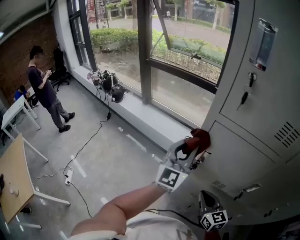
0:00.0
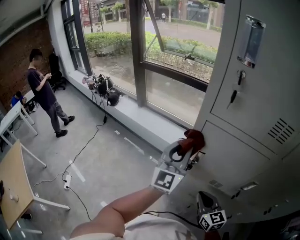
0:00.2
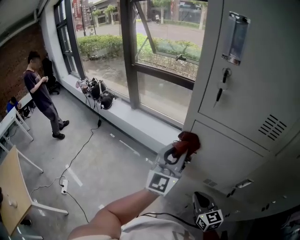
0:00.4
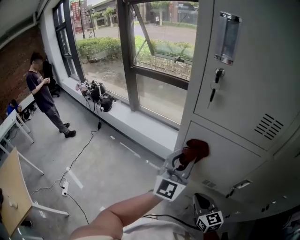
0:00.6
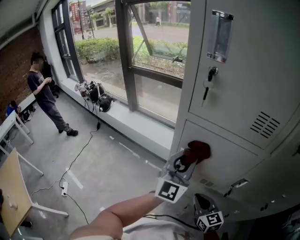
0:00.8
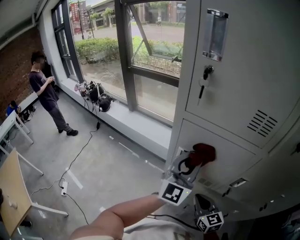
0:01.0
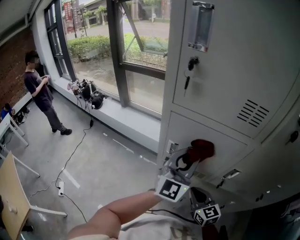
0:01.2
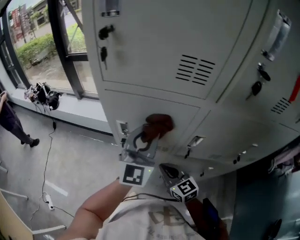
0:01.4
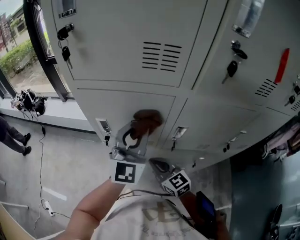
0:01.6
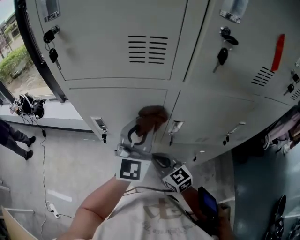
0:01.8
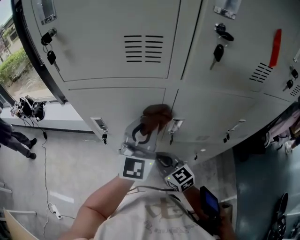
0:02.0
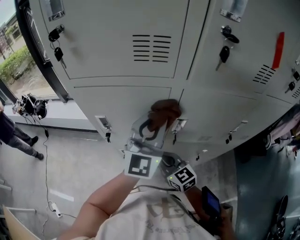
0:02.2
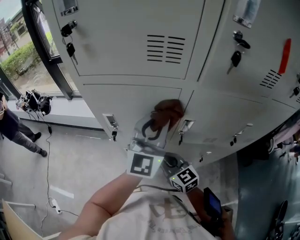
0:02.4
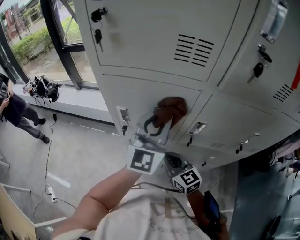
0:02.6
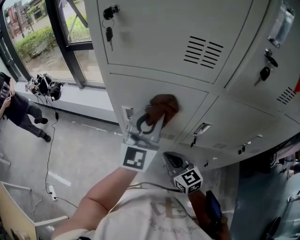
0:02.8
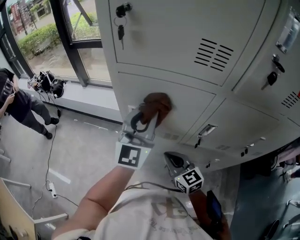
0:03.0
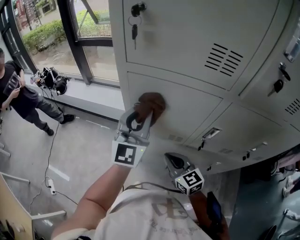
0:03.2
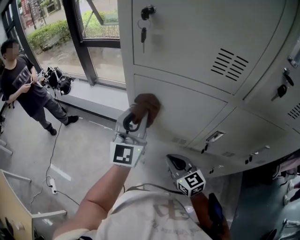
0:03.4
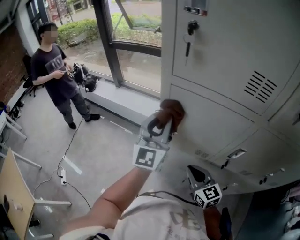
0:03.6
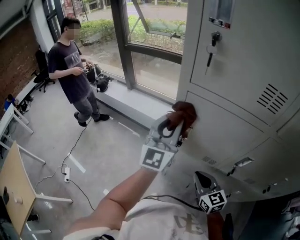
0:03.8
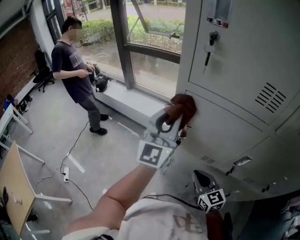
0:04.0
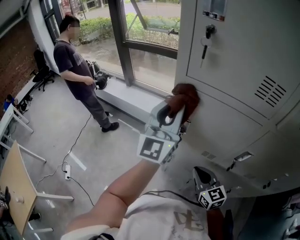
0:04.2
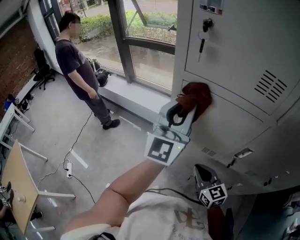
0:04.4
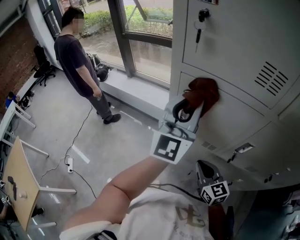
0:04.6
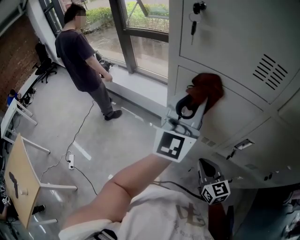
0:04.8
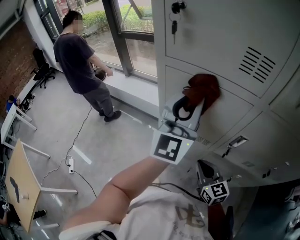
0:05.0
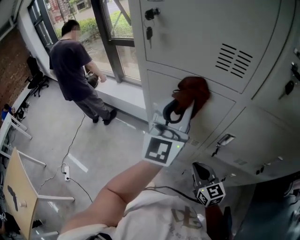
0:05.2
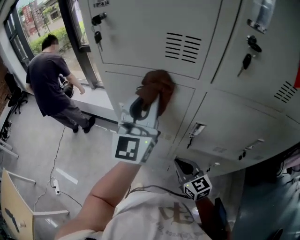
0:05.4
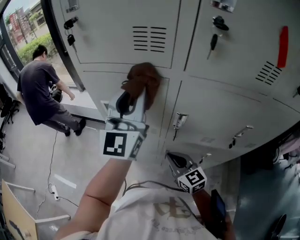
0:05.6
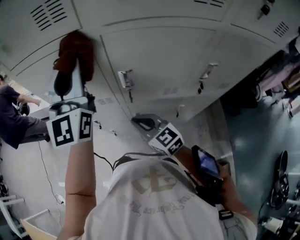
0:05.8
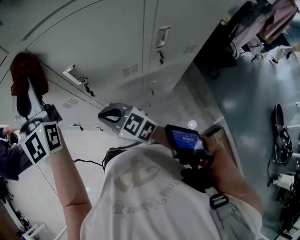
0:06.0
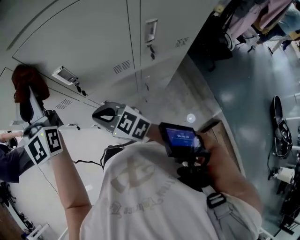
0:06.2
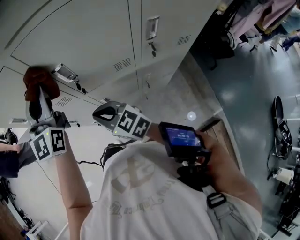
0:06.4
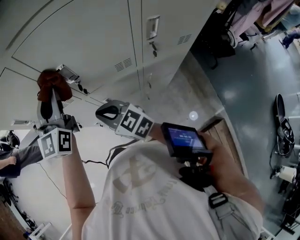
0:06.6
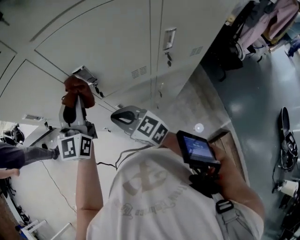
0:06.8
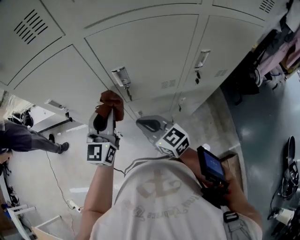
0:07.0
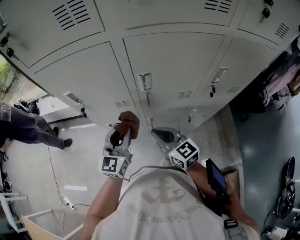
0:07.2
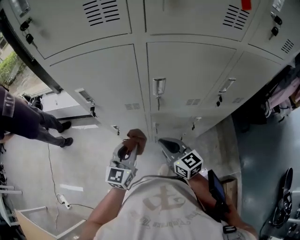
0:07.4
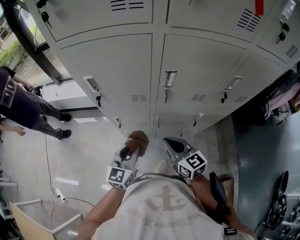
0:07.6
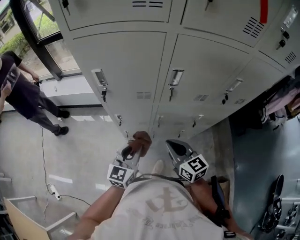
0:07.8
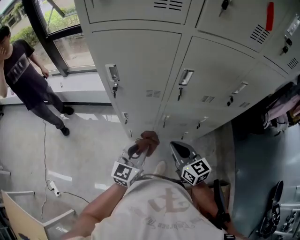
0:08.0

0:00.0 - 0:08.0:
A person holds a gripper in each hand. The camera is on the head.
0:00.0 - 0:01.6: The left gripper goes some 20 cm to the right; the right gripper heads to the right, covering about 10 cm.
0:01.6 - 0:03.2: The left gripper goes some 10 cm to the left.
0:03.2 - 0:04.8: The left gripper is displaced upward by approximately 10 cm. The right gripper shifts some 5 cm to the right.
0:04.8 - 0:06.4: The left gripper moves to the right and downward, approximately 15 cm, and turns by roughly 20 degrees; the right gripper goes about 5 cm to the right.
0:06.4 - 0:08.0: The left gripper is displaced downward, backward and to the left by approximately 30 cm, and swivels about 30 degrees. The right gripper shifts about 10 cm backward.

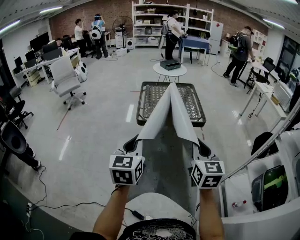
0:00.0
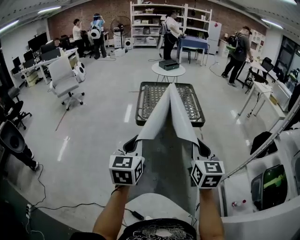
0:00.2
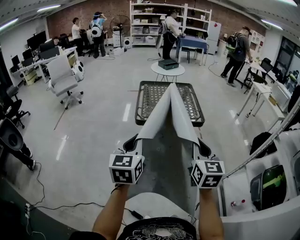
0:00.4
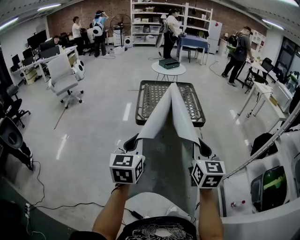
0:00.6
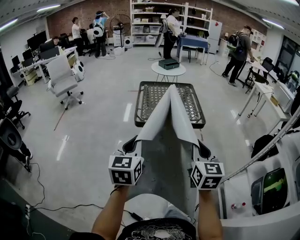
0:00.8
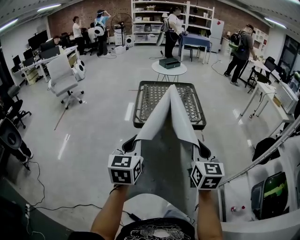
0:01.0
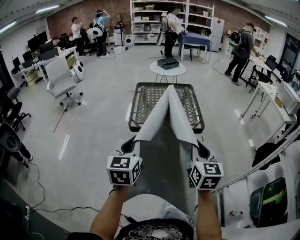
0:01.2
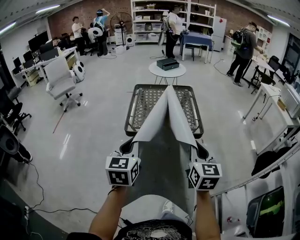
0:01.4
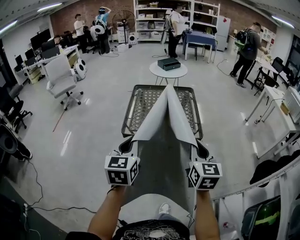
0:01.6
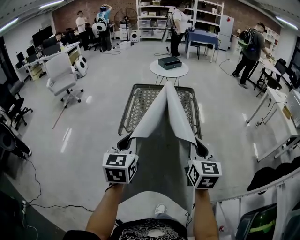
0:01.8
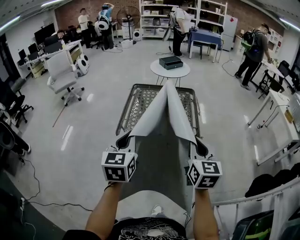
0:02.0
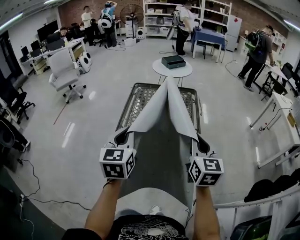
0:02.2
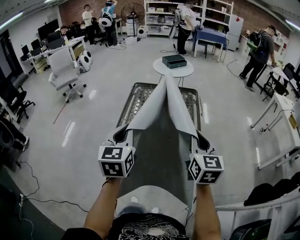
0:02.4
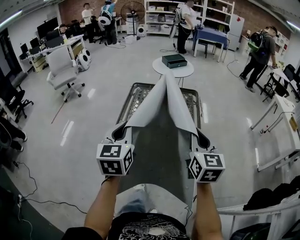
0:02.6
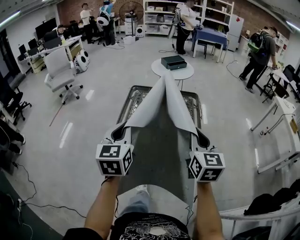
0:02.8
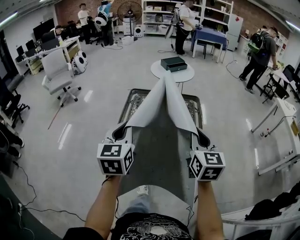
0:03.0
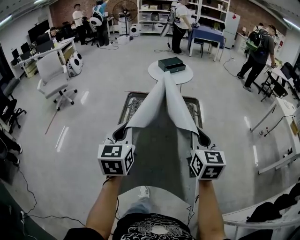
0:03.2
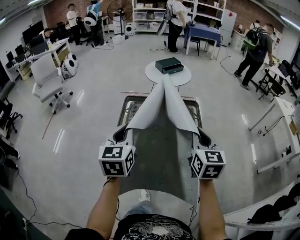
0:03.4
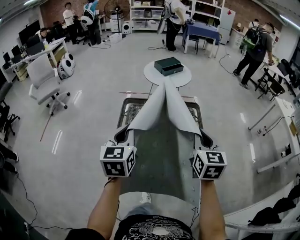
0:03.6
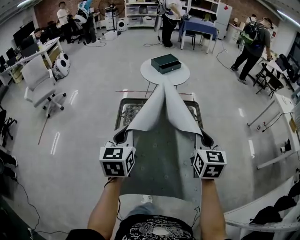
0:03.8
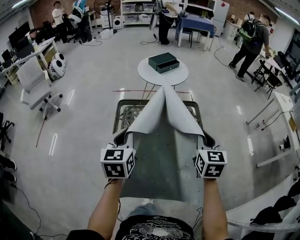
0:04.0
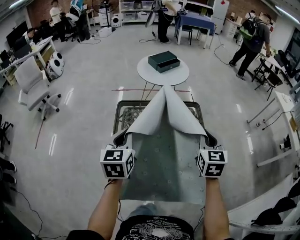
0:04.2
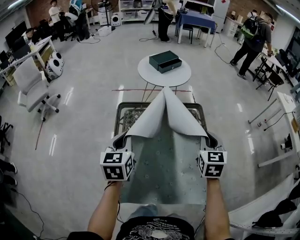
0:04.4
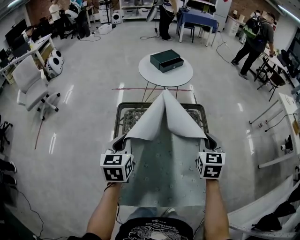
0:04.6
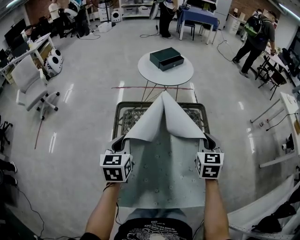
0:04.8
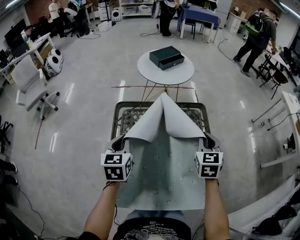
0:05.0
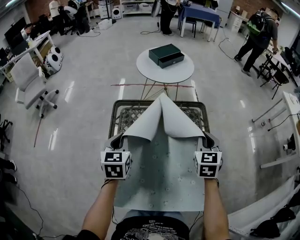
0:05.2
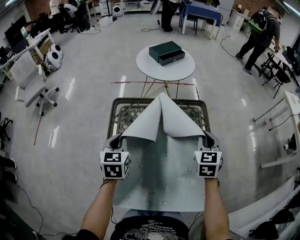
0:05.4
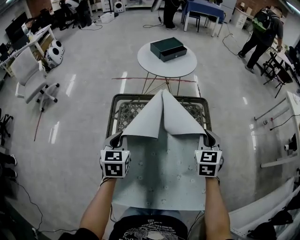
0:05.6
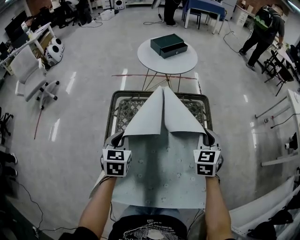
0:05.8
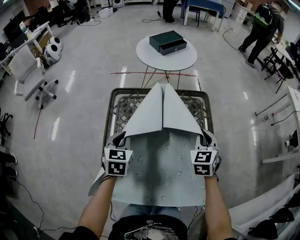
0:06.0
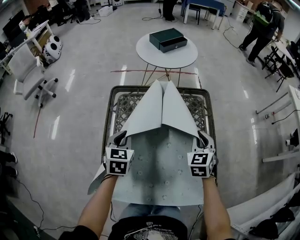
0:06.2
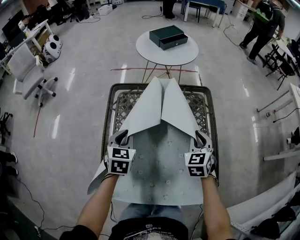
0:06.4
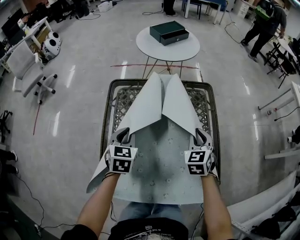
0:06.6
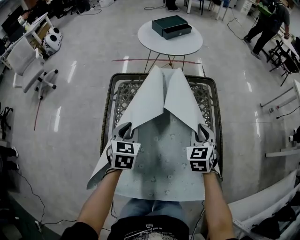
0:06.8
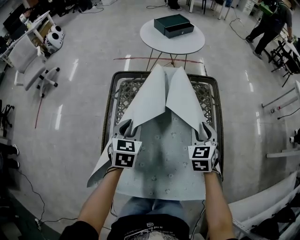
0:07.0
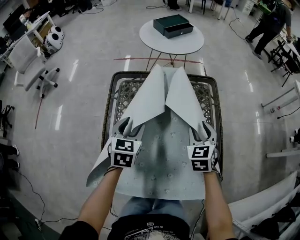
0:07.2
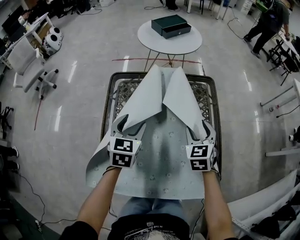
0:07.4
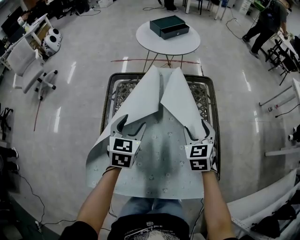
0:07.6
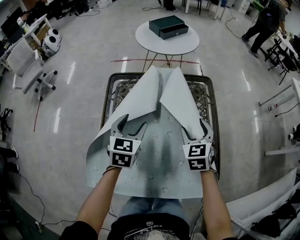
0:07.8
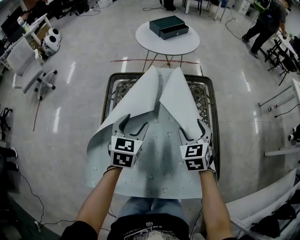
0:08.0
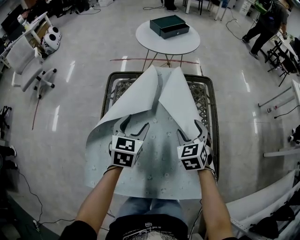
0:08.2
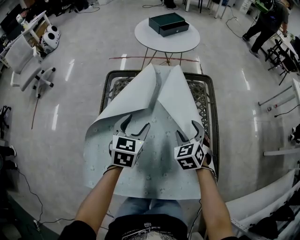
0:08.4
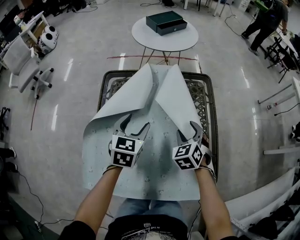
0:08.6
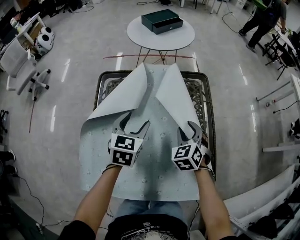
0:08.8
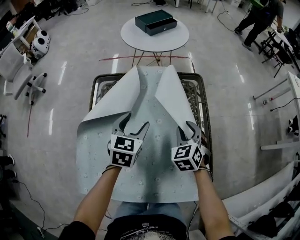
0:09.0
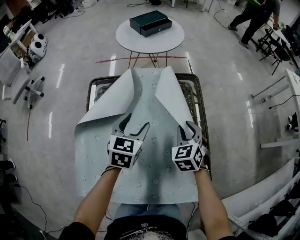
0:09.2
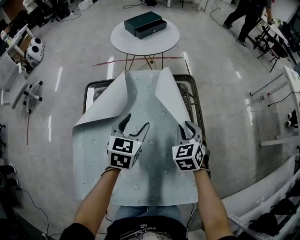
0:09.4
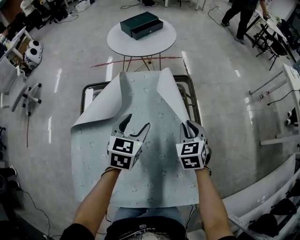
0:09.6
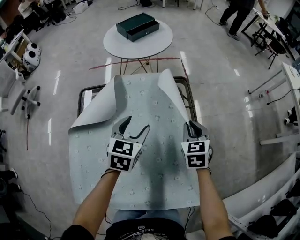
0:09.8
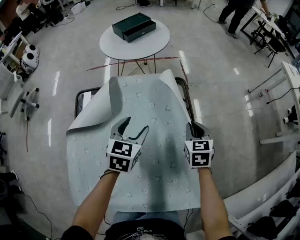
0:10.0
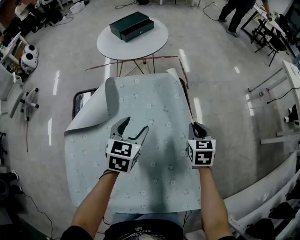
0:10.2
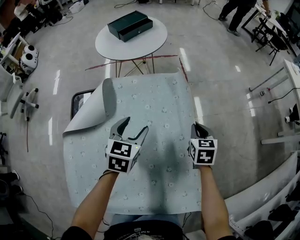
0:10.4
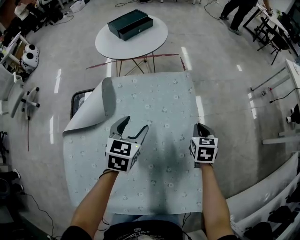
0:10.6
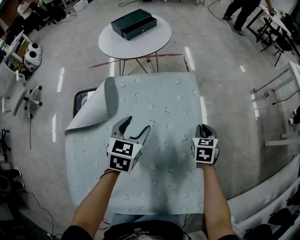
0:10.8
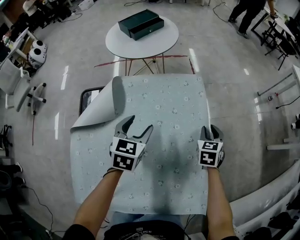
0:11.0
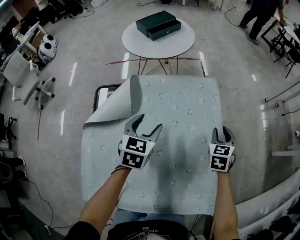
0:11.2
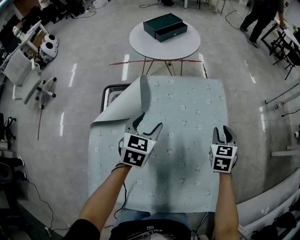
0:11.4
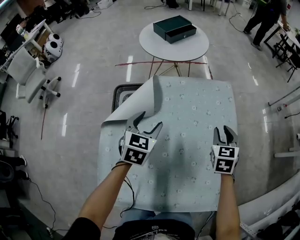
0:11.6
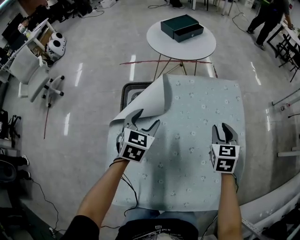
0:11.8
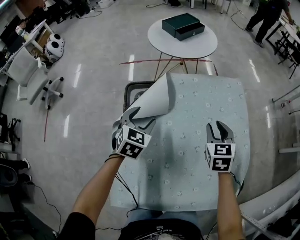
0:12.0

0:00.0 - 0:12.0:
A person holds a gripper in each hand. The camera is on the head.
0:00.0 - 0:01.6: The grippers both shift forward and to the right by some 25 cm.
0:01.6 - 0:03.0: The grippers both shift forward by some 25 cm.
0:03.0 - 0:04.4: Both grippers move forward, some 25 cm. The right gripper changes its angle by some 20 degrees.
0:04.4 - 0:06.0: The left gripper goes roughly 15 cm downward, while the right gripper is displaced downward and forward by approximately 15 cm.
0:06.0 - 0:07.6: The right gripper shifts some 5 cm downward, and opens its fingers; the left gripper changes place by roughly 5 cm, and opens up.
0:07.6 - 0:09.0: The left gripper heads to the right, covering roughly 5 cm. Meanwhile the right gripper moves roughly 5 cm, and closes.
0:09.0 - 0:10.4: The grippers both shift to the right and forward by roughly 15 cm. The right gripper changes its angle by about 40 degrees, and closes its fingers.
0:10.4 - 0:12.0: The two grippers go some 25 cm to the left.

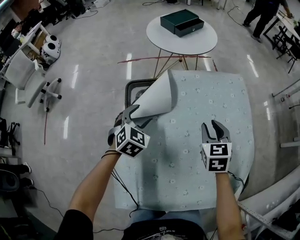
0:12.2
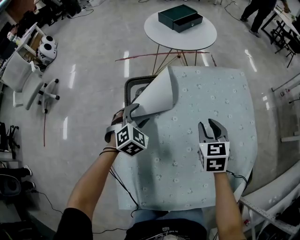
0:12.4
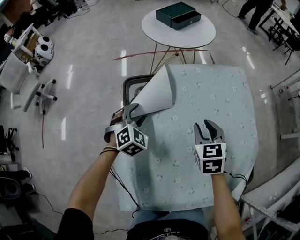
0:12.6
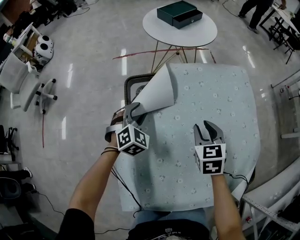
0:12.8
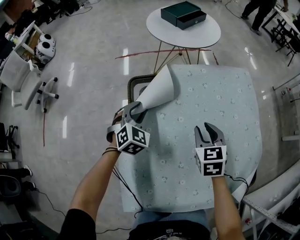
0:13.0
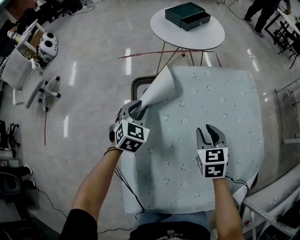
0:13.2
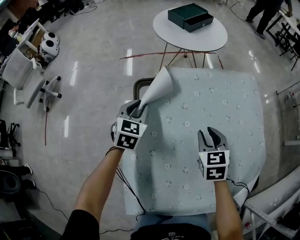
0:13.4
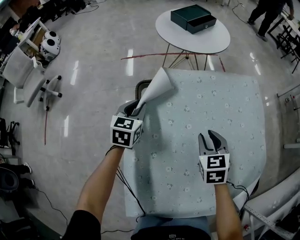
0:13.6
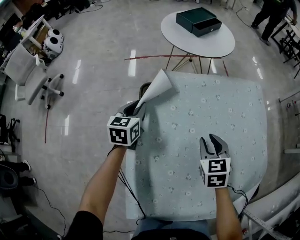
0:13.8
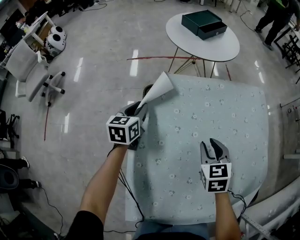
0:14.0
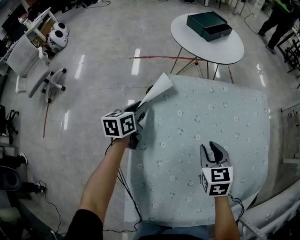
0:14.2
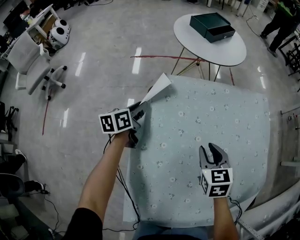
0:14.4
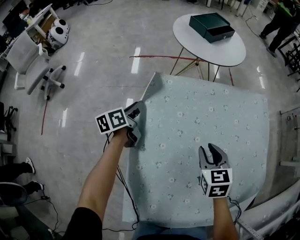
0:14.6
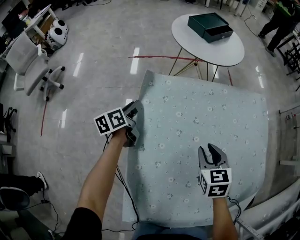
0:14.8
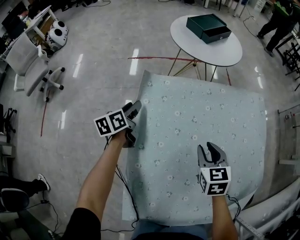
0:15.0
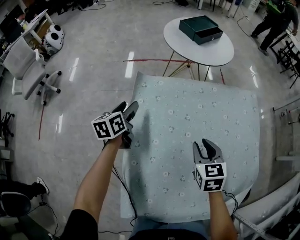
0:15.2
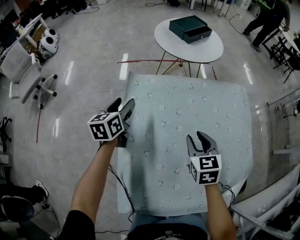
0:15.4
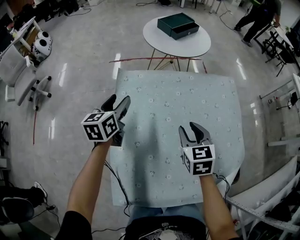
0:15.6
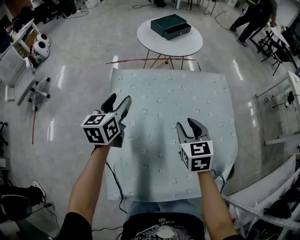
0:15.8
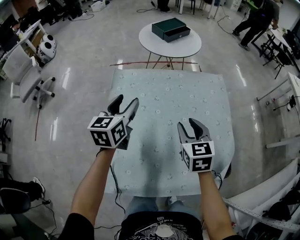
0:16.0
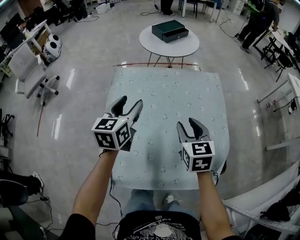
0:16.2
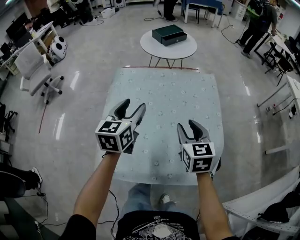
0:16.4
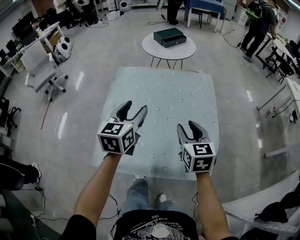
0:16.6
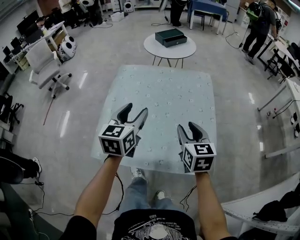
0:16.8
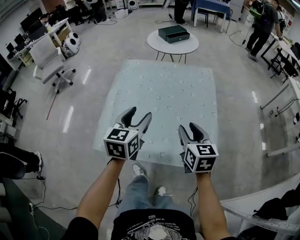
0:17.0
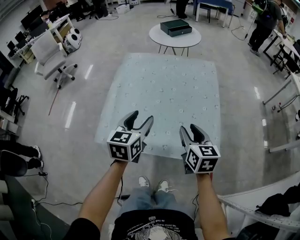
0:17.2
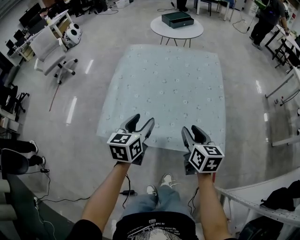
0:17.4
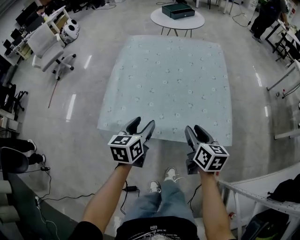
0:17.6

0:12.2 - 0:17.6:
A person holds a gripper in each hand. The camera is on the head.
0:12.2 - 0:13.6: The right gripper heads to the left, covering some 10 cm. Meanwhile the left gripper moves to the left and forward, approximately 10 cm, turns by some 30 degrees, and closes.
0:13.6 - 0:15.0: The left gripper is displaced to the left by about 10 cm, and rotates around the line of its fingers by about 40 degrees, counterclockwise from behind.
0:15.0 - 0:16.2: The left gripper is displaced upward, to the right and backward by roughly 35 cm, and changes its angle by some 30 degrees; the right gripper heads upward, backward and to the right, covering roughly 20 cm.
0:16.2 - 0:17.6: The two grippers go some 30 cm backward. The right gripper swivels about 30 degrees.
